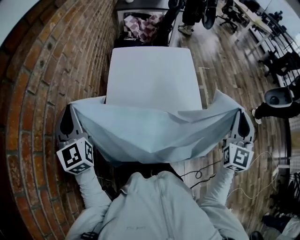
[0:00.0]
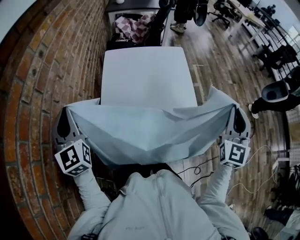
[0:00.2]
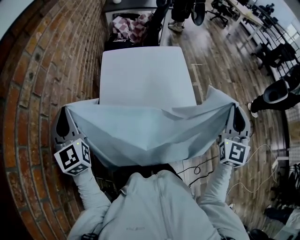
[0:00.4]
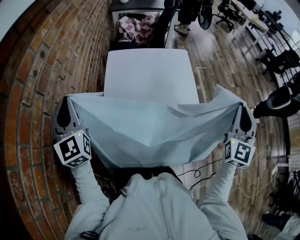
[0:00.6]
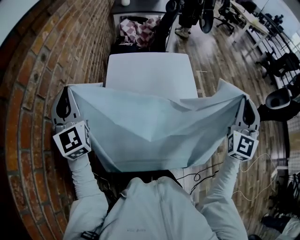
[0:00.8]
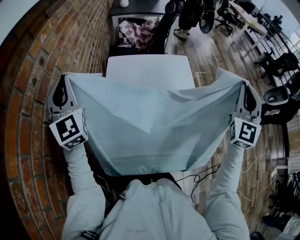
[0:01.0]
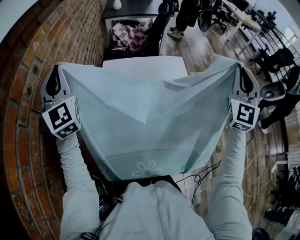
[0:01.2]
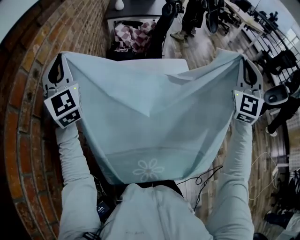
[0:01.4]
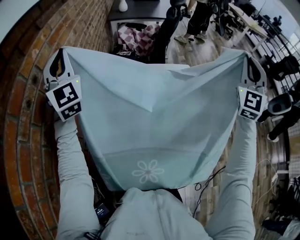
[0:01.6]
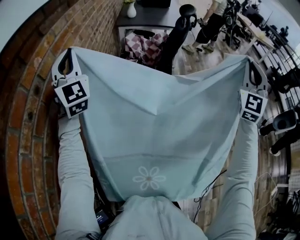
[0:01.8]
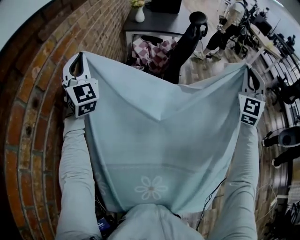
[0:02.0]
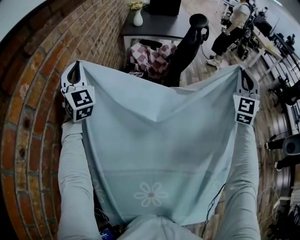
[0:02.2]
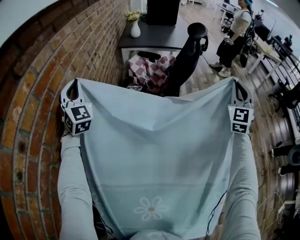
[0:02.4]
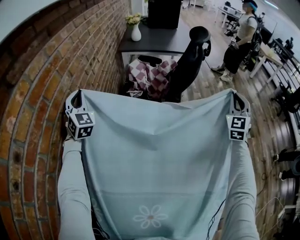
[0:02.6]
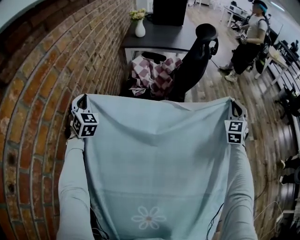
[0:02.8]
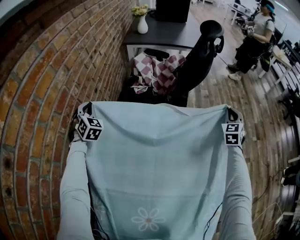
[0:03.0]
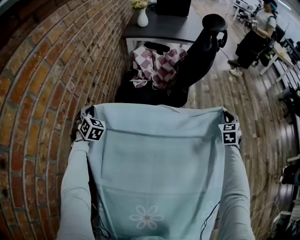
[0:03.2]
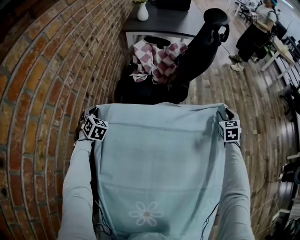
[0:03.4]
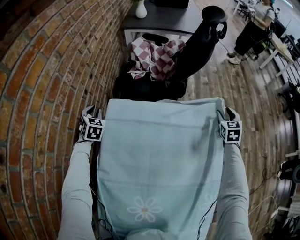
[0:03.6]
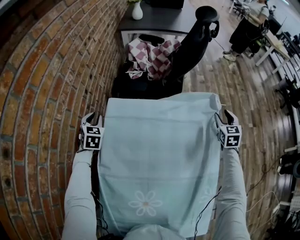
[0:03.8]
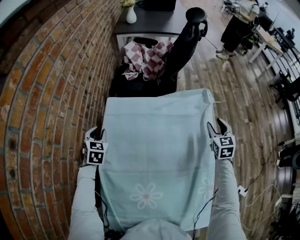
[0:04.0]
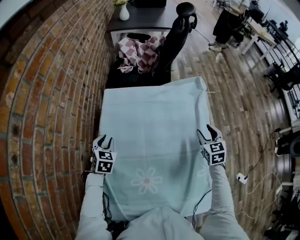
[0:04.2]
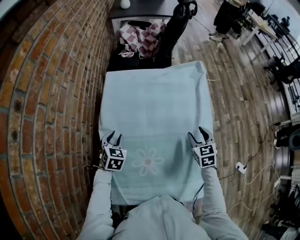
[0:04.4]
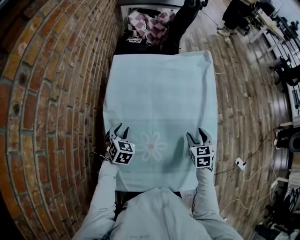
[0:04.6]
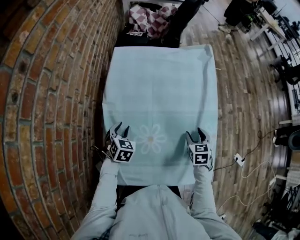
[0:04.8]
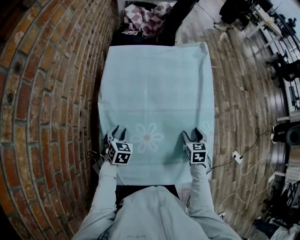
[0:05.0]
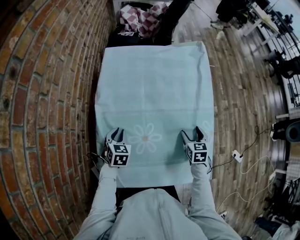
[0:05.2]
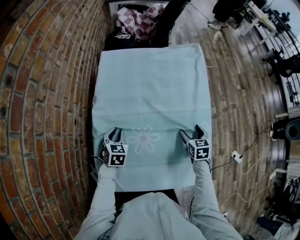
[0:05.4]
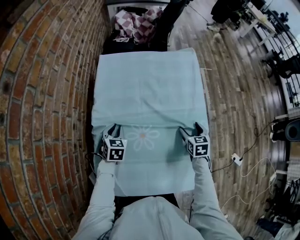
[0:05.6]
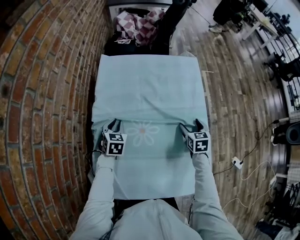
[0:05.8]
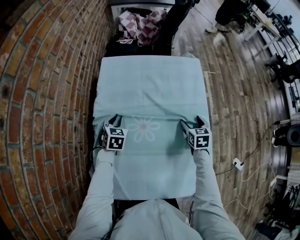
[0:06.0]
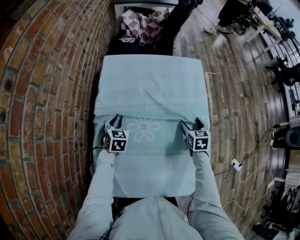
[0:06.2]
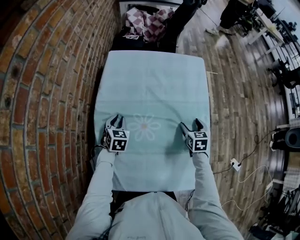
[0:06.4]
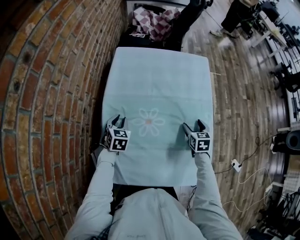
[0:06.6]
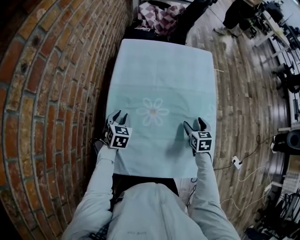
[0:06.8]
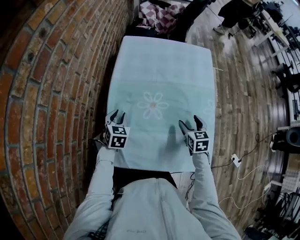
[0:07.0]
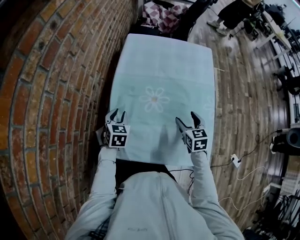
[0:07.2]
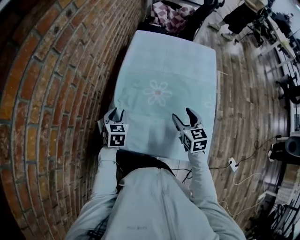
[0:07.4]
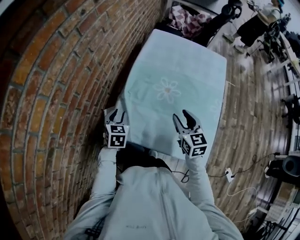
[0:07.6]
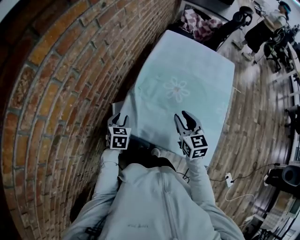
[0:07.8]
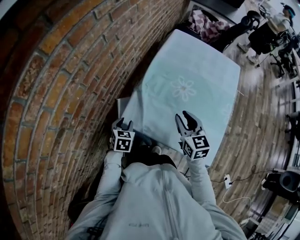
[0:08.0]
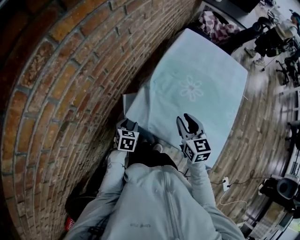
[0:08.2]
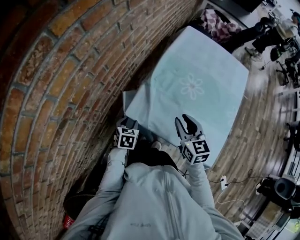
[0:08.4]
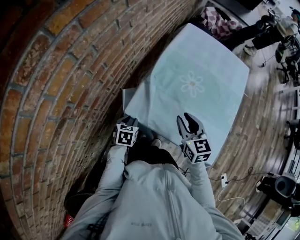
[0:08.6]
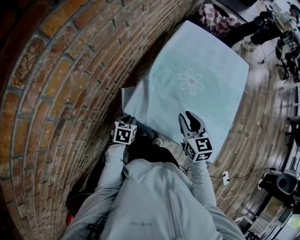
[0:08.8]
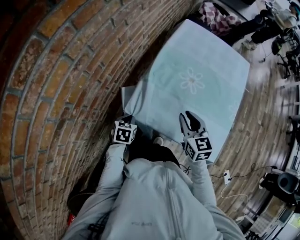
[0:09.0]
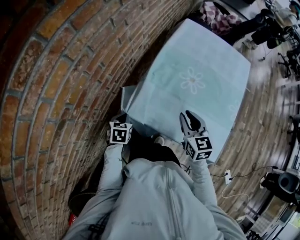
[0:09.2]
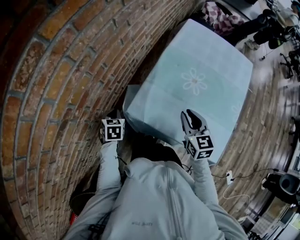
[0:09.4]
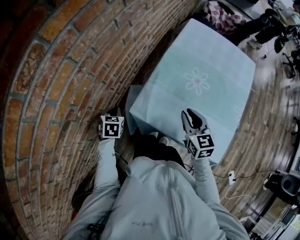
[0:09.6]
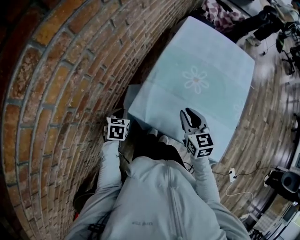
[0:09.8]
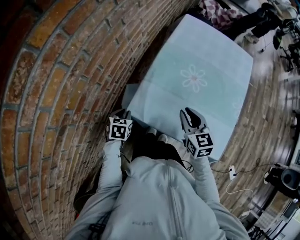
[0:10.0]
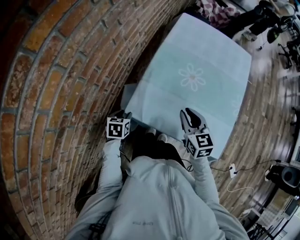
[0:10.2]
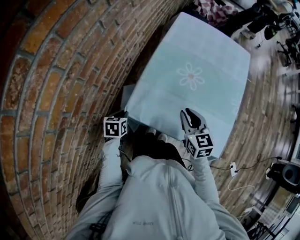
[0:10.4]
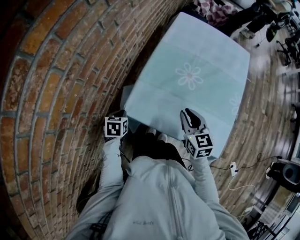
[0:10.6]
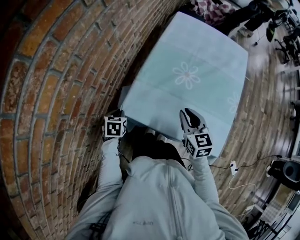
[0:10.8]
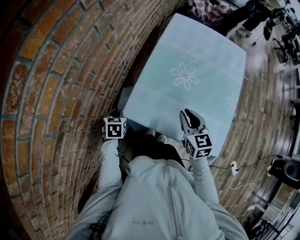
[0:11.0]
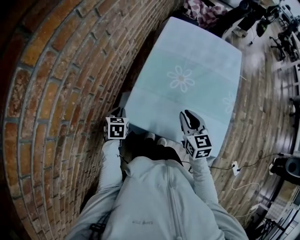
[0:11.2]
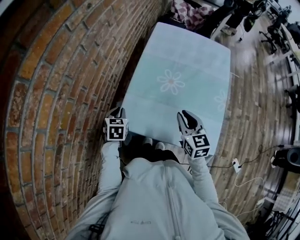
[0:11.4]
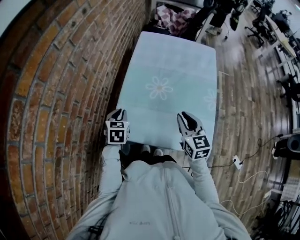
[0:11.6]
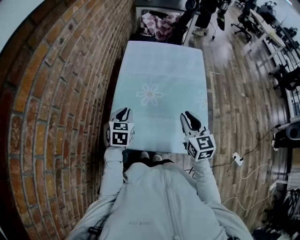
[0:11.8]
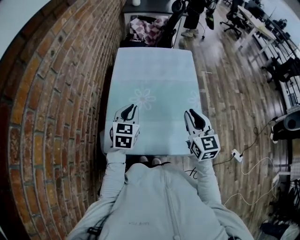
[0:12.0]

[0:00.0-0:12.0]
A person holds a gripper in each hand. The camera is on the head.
0:00.0 to 0:01.6: The right gripper travels forward and upward by approximately 30 cm, and turns by some 20 degrees. The left gripper shifts some 30 cm forward, and swivels some 20 degrees.
0:01.6 to 0:03.0: The grippers both shift downward and forward by roughly 50 cm. The left gripper points its fingers roughly 40 degrees further downward; the right gripper angles its fingers downward, by approximately 30 degrees.
0:03.0 to 0:04.4: The right gripper moves backward and to the left, approximately 40 cm, changes its angle by about 30 degrees, and opens its fingers; the left gripper travels backward by approximately 35 cm, swivels some 30 degrees, and opens.
0:04.4 to 0:06.0: The grippers both shift downward by approximately 5 cm. The right gripper moves some 10 cm backward and comes back, and opens, while the left gripper reaches some 10 cm backward, then returns.
0:06.0 to 0:07.6: The right gripper moves some 30 cm, changes its angle by about 40 degrees, and closes up, while the left gripper shifts by roughly 30 cm, and turns by about 20 degrees.
0:07.6 to 0:09.0: The left gripper goes approximately 15 cm backward, downward and to the left, changes its angle by about 20 degrees, and closes. Meanwhile the right gripper is displaced to the left by roughly 10 cm.
0:09.0 to 0:10.4: The left gripper opens, then closes once more.
0:10.4 to 0:12.0: The right gripper shifts by approximately 20 cm, and rotates roughly 30 degrees; the left gripper moves approximately 35 cm, and angles its fingers upward, by about 30 degrees.

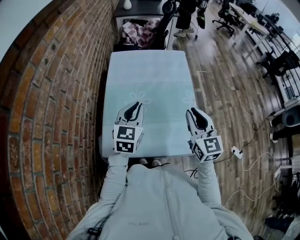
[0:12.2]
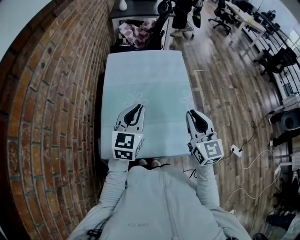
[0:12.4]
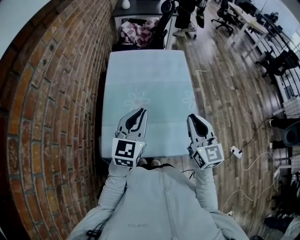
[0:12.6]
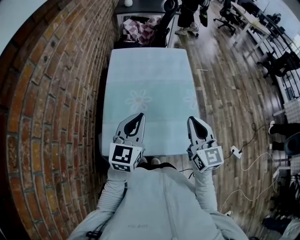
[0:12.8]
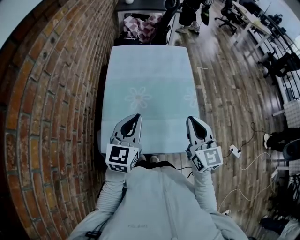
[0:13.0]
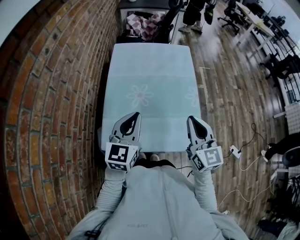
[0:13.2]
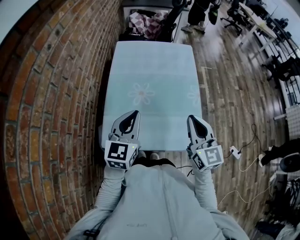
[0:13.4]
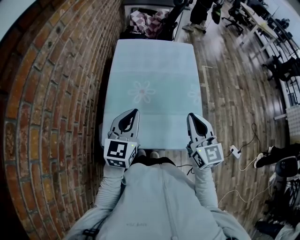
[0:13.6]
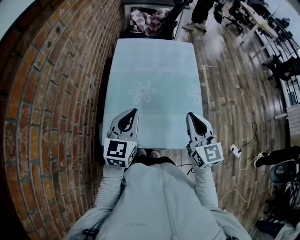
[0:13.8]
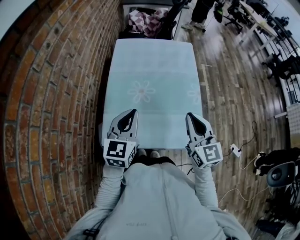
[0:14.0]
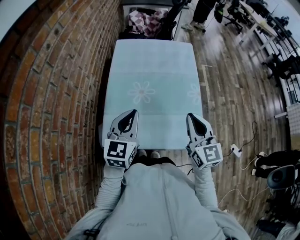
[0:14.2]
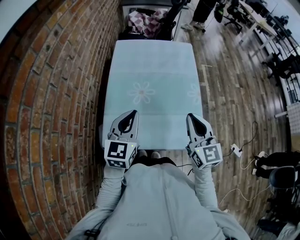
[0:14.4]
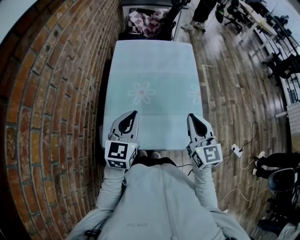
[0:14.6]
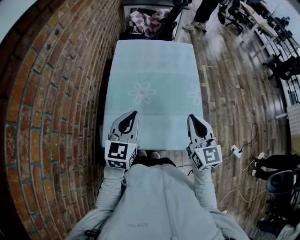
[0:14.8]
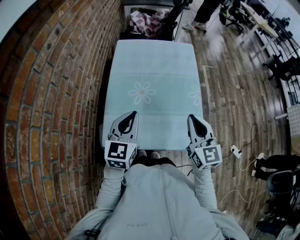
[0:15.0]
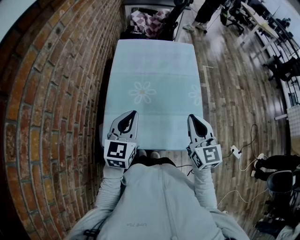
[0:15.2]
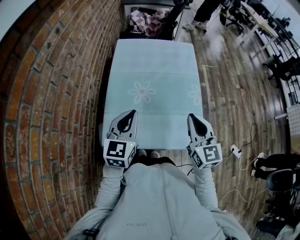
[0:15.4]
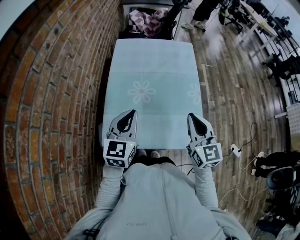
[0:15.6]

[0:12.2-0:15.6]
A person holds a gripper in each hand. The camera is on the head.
0:12.2 to 0:13.8: The left gripper moves backward, some 5 cm.
0:13.8 to 0:15.6: Both grippers stay about where they are.

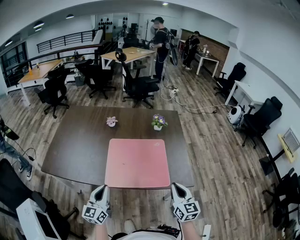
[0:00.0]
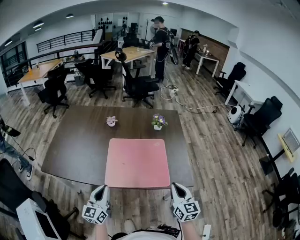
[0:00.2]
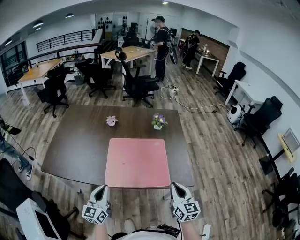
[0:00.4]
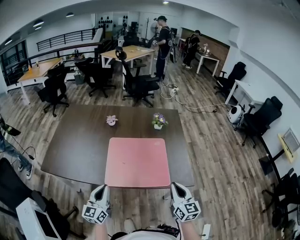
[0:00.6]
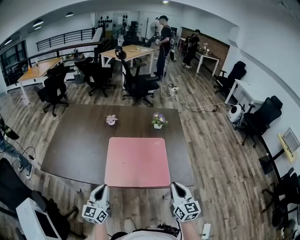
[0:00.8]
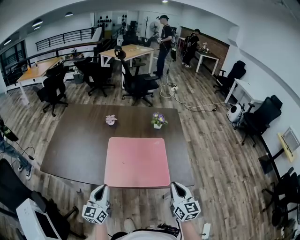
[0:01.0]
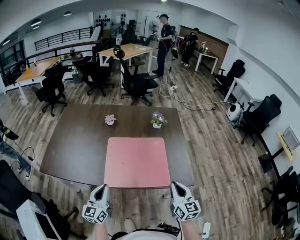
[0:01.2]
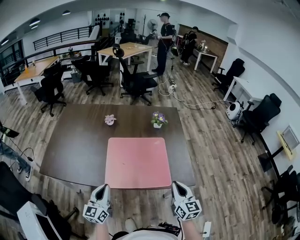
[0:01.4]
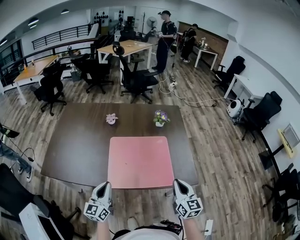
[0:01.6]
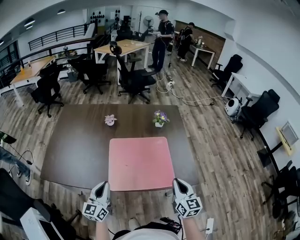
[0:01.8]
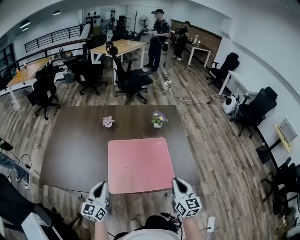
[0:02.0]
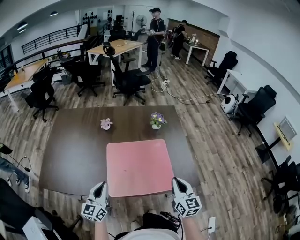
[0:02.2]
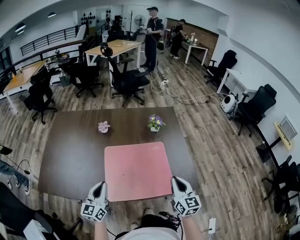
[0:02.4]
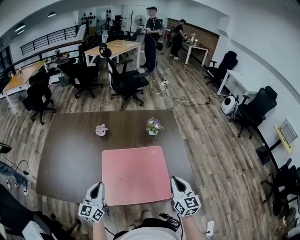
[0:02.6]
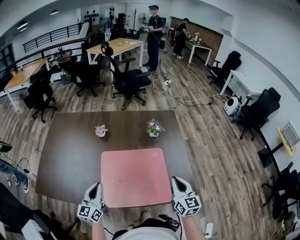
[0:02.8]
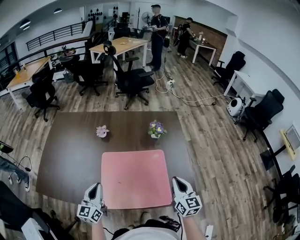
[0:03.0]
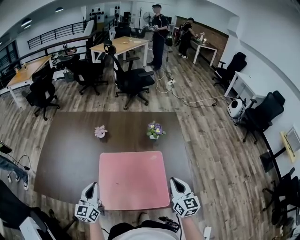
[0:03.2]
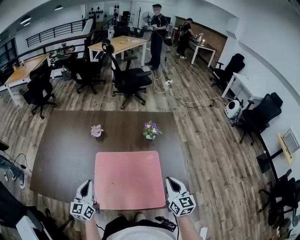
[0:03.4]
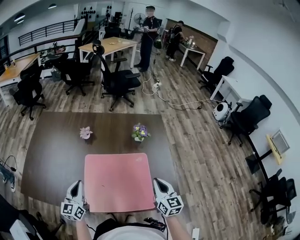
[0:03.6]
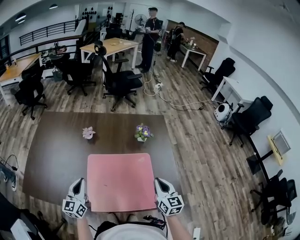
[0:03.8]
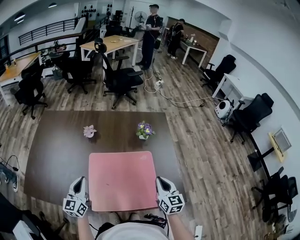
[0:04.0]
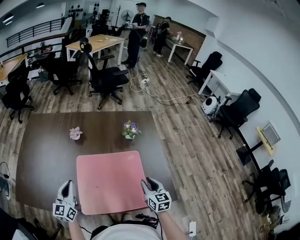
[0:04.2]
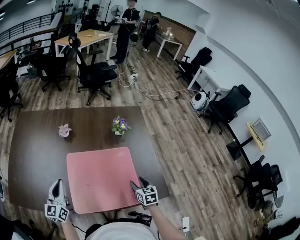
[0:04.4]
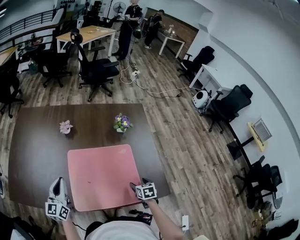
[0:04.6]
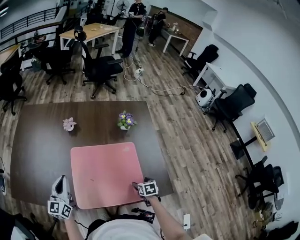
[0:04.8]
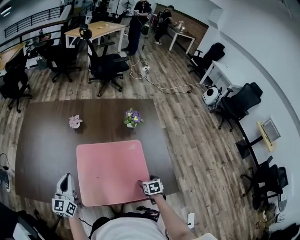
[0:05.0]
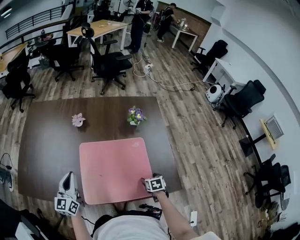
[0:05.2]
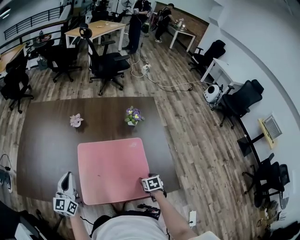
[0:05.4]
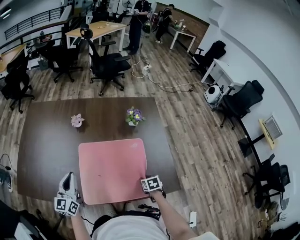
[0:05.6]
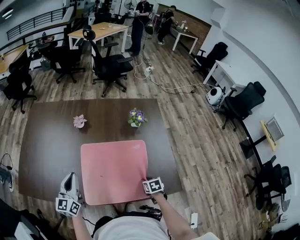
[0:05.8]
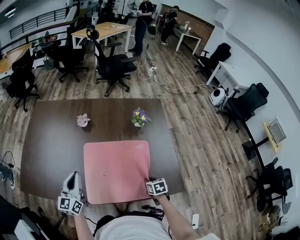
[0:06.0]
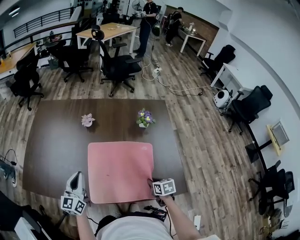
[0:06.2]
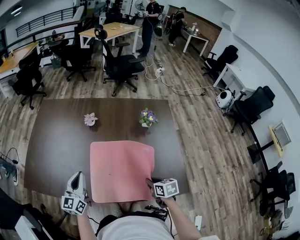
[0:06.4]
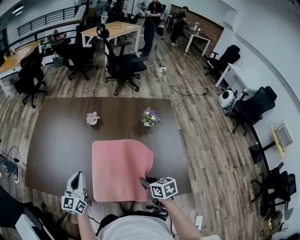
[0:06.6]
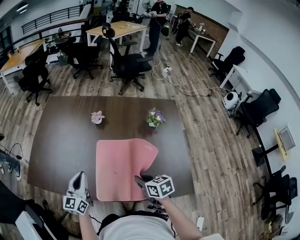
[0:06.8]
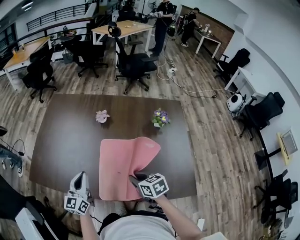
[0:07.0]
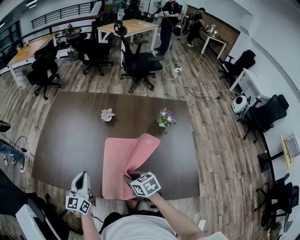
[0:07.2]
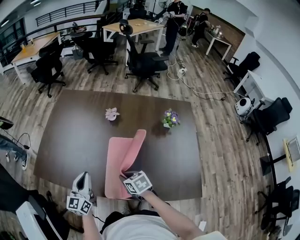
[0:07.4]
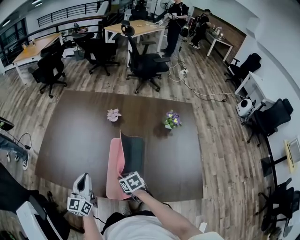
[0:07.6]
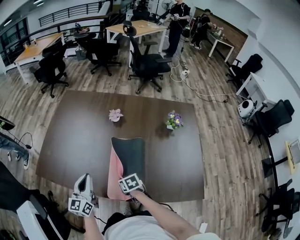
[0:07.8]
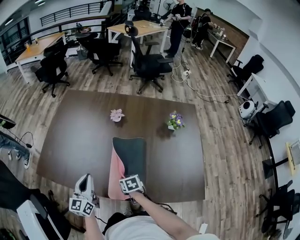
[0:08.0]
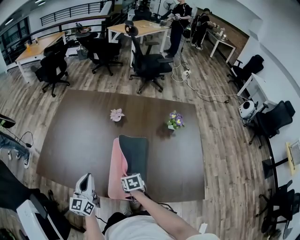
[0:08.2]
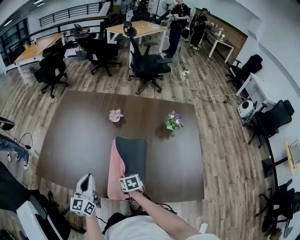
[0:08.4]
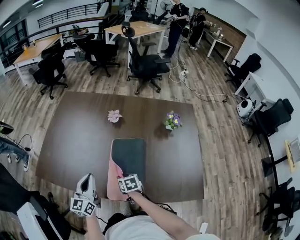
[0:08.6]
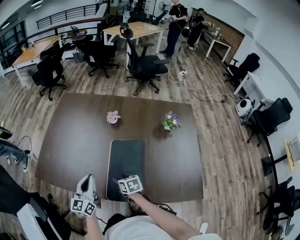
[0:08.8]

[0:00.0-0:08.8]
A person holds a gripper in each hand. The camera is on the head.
0:00.0 to 0:01.4: The grippers make only small movements.
0:01.4 to 0:03.0: The two grippers go about 15 cm forward.
0:03.0 to 0:04.4: The left gripper shifts by some 5 cm, while the right gripper is displaced downward by some 15 cm, tilts its fingers some 30 degrees downward, and opens its fingers.
0:04.4 to 0:05.8: The right gripper travels downward by approximately 10 cm, rotates approximately 20 degrees, and closes up.
0:05.8 to 0:07.4: The left gripper moves to the left, approximately 10 cm. Meanwhile the right gripper travels to the left and upward by roughly 30 cm, and turns by roughly 40 degrees.
0:07.4 to 0:08.8: The right gripper shifts about 5 cm downward, and opens up.
